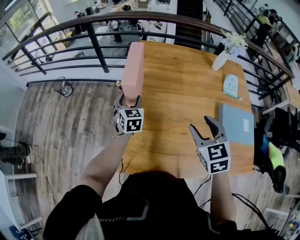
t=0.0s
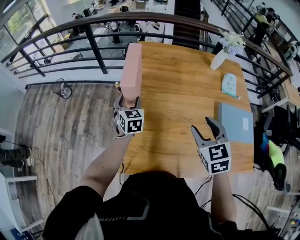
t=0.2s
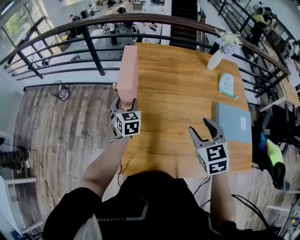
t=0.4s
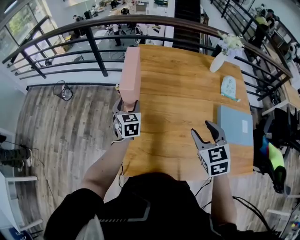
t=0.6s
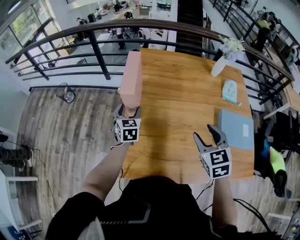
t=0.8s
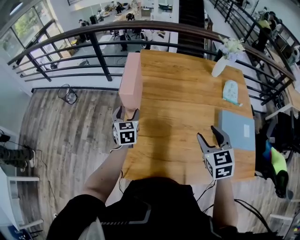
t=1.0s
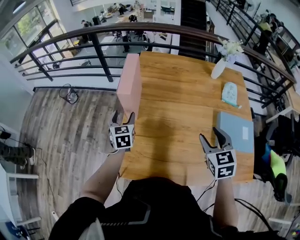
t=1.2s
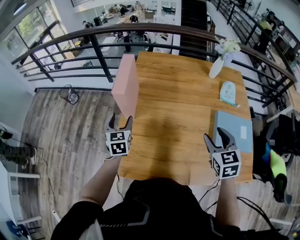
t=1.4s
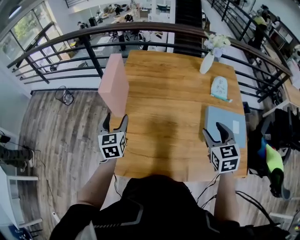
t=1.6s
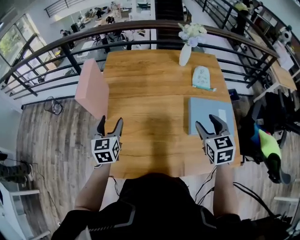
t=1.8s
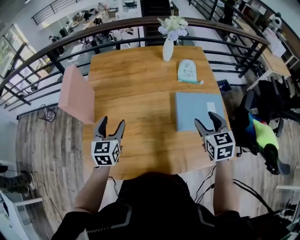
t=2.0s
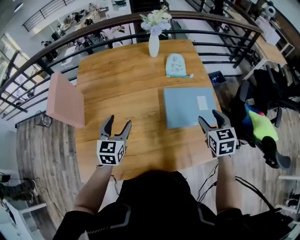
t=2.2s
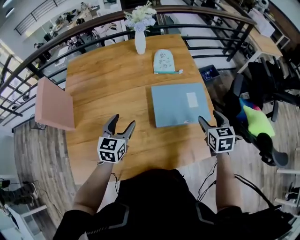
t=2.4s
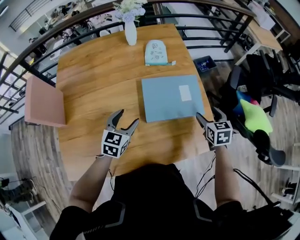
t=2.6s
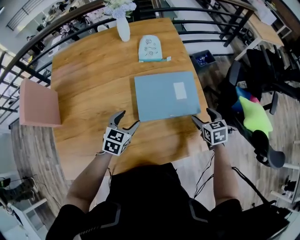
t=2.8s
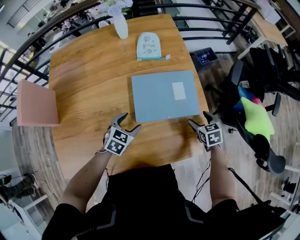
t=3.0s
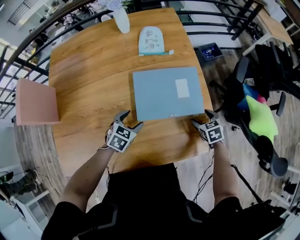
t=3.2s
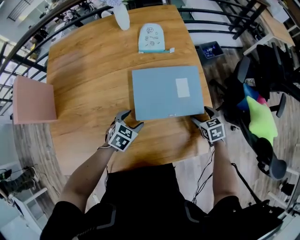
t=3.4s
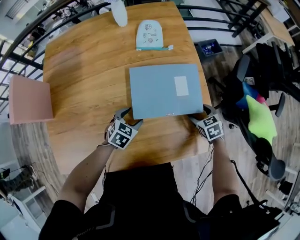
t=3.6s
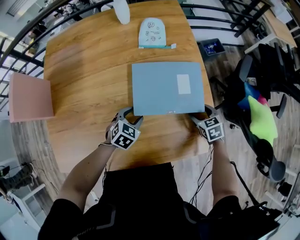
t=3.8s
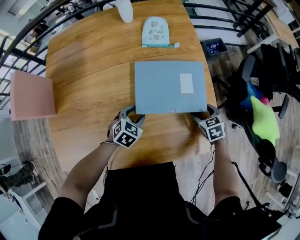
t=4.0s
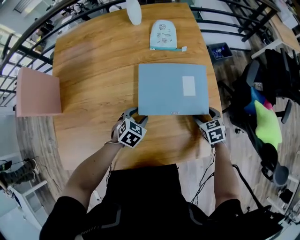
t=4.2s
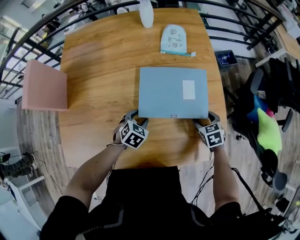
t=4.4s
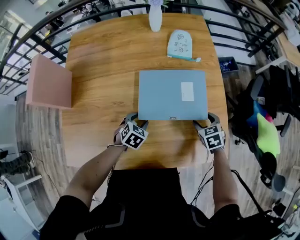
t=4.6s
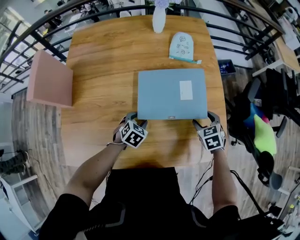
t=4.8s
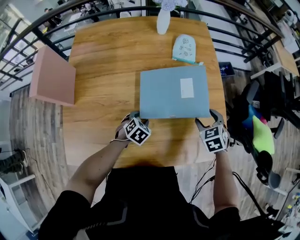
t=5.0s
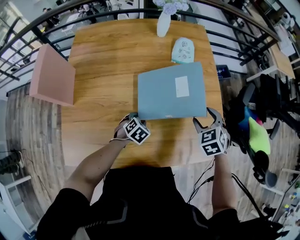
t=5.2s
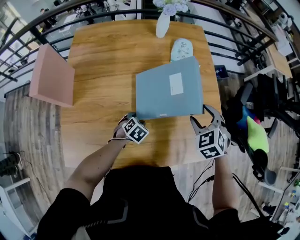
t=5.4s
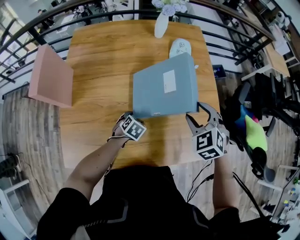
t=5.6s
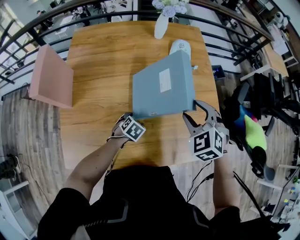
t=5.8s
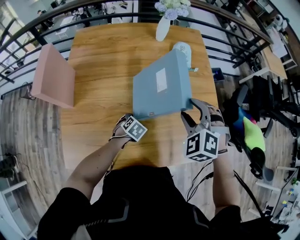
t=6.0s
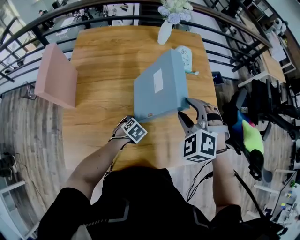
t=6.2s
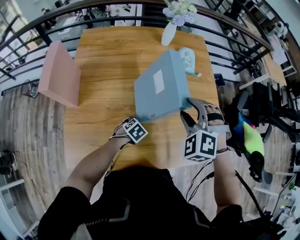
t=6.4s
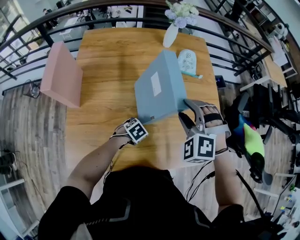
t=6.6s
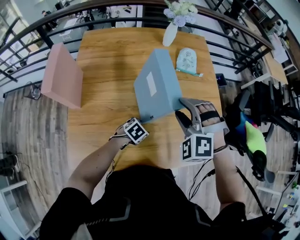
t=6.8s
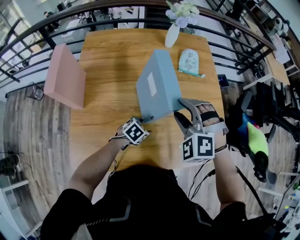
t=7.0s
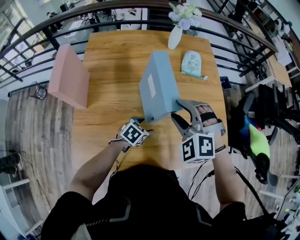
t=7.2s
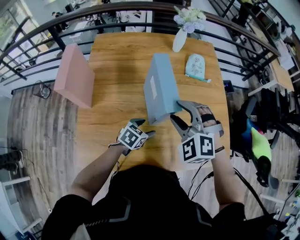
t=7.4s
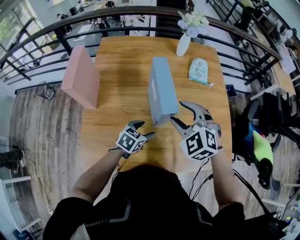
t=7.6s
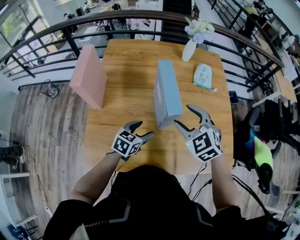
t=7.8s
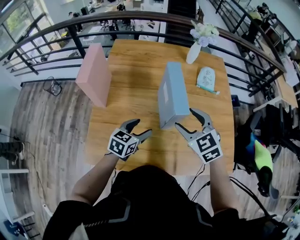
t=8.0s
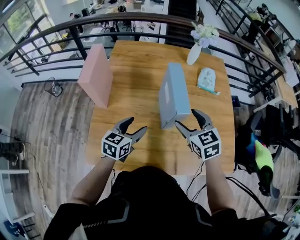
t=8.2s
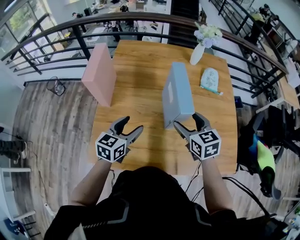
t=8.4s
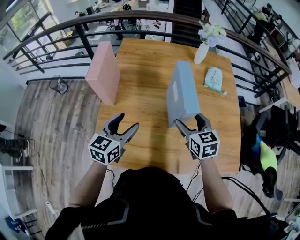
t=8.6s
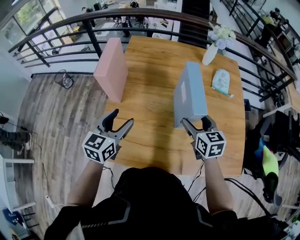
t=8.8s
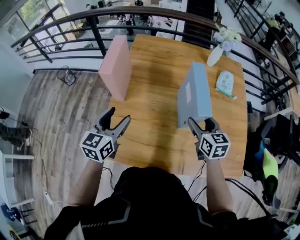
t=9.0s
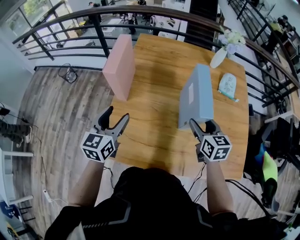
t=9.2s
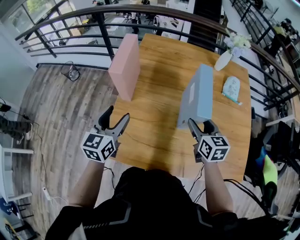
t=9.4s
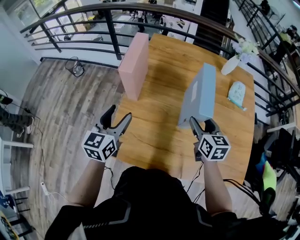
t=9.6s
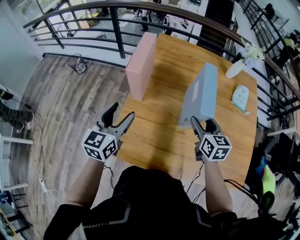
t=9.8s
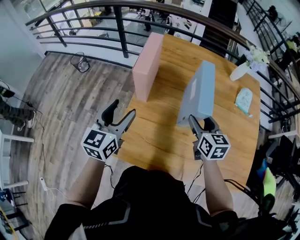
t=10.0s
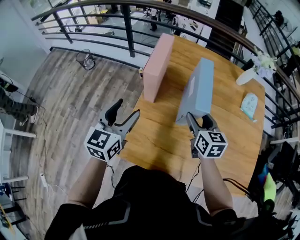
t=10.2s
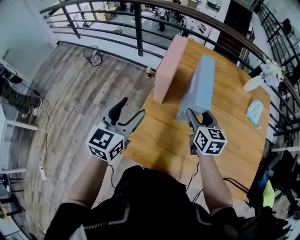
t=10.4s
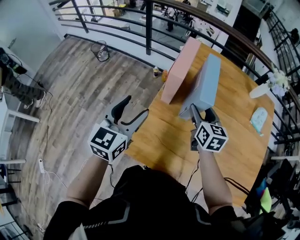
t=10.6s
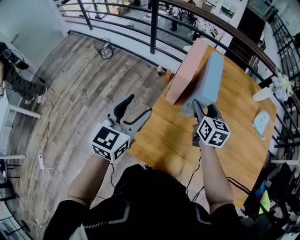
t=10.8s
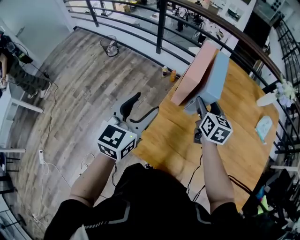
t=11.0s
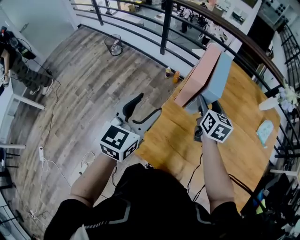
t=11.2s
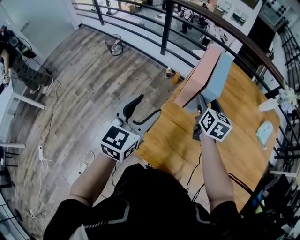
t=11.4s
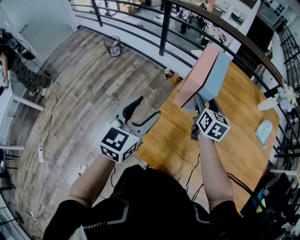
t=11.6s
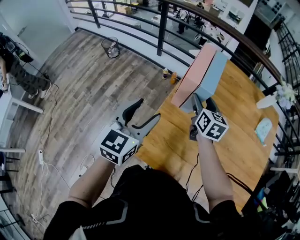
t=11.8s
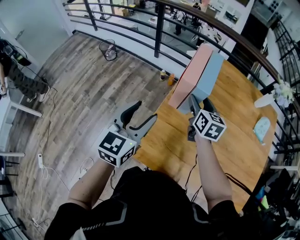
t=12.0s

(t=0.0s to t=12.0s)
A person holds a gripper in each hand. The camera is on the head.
t=0.0s - t=1.6s: The left gripper goes some 15 cm backward and upward. Meanwhile the right gripper travels to the right by approximately 15 cm.
t=1.6s - t=3.0s: The left gripper ends up roughly 50 cm from where it was, and turns by roughly 60 degrees. Meanwhile the right gripper changes place by about 40 cm, and swivels some 30 degrees.
t=3.0s - t=4.4s: The left gripper is displaced downward by approximately 5 cm; the right gripper moves to the left, about 5 cm.
t=4.4s - t=6.0s: The right gripper shifts about 30 cm upward and to the left, and twists some 50 degrees counterclockwise, seen from behind; the left gripper heads to the left, covering approximately 5 cm.
t=6.0s - t=7.6s: The right gripper changes place by about 15 cm, and changes its angle by about 20 degrees; the left gripper moves upward, roughly 10 cm, and rotates some 30 degrees.
t=7.6s - t=9.0s: The left gripper is displaced to the left and upward by roughly 30 cm, and rotates roughly 40 degrees, while the right gripper moves downward, approximately 5 cm, and rotates around the line of its fingers by about 50 degrees, clockwise from behind.
t=9.0s - t=10.4s: The right gripper shifts about 25 cm to the left and forward; the left gripper is displaced to the left by approximately 15 cm.
t=10.4s - t=12.0s: The right gripper travels to the left and forward by some 10 cm.

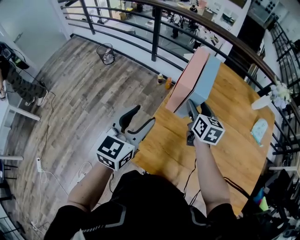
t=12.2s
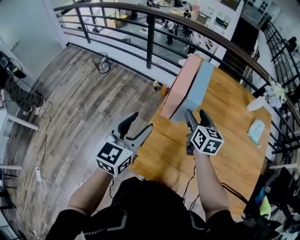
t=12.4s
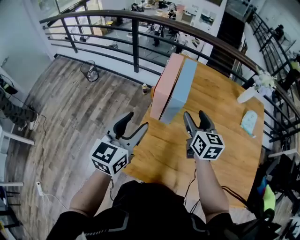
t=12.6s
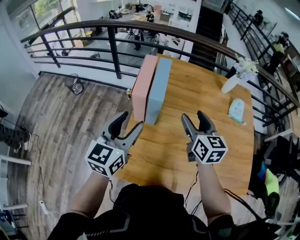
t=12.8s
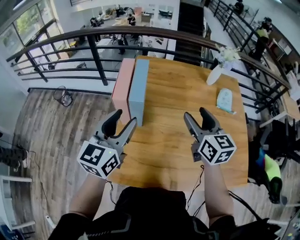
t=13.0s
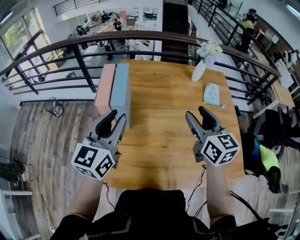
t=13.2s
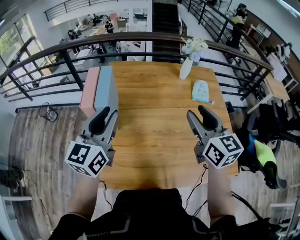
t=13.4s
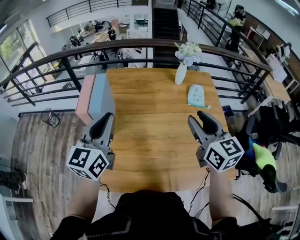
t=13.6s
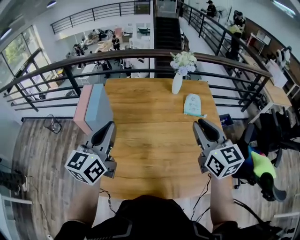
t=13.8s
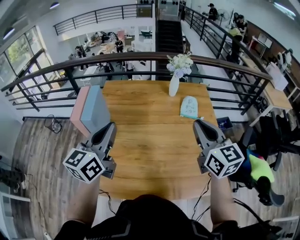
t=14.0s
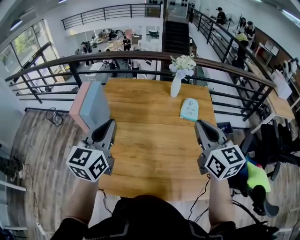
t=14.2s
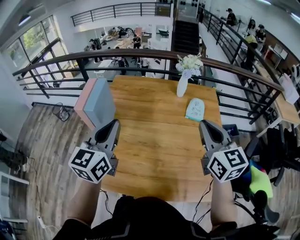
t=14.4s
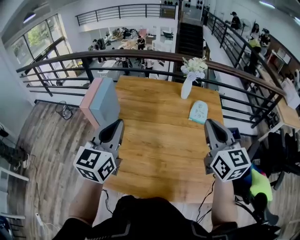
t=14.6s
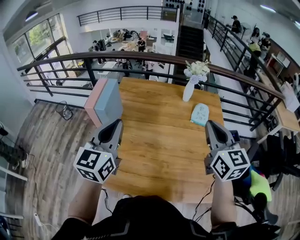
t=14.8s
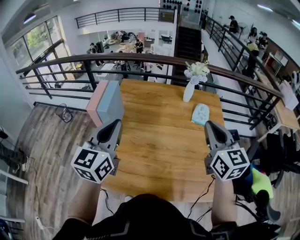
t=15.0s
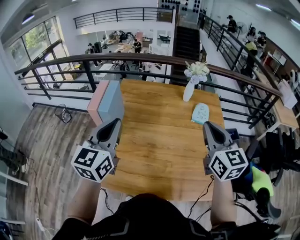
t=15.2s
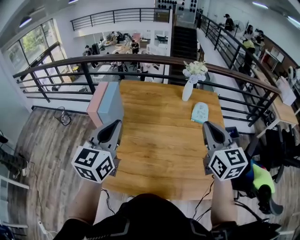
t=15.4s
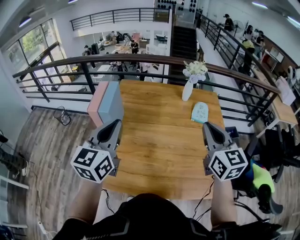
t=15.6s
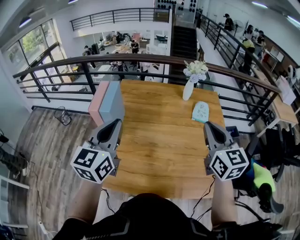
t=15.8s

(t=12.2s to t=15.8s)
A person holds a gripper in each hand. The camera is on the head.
t=12.2s - t=14.0s: The grippers both shift to the right and upward by some 40 cm. The left gripper turns by about 20 degrees, and closes. Meanwhile the right gripper changes its angle by about 20 degrees, and closes.
t=14.0s - t=15.8s: The left gripper changes place by roughly 5 cm.

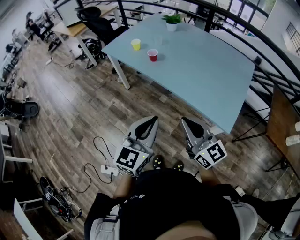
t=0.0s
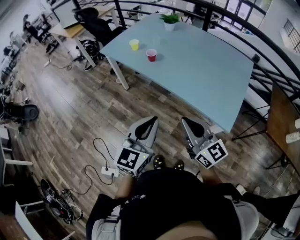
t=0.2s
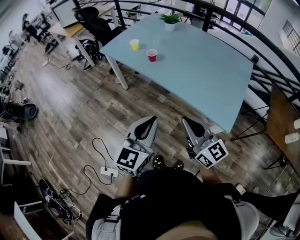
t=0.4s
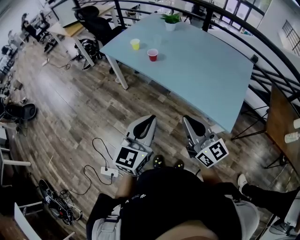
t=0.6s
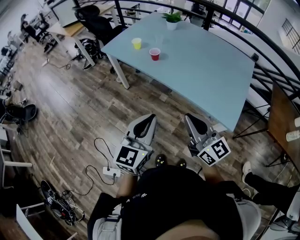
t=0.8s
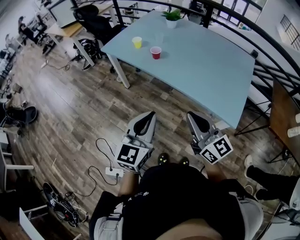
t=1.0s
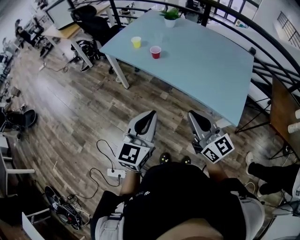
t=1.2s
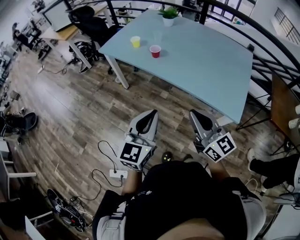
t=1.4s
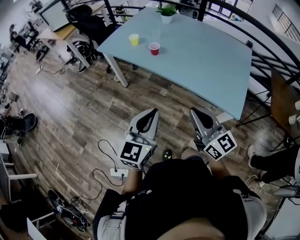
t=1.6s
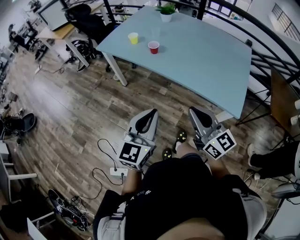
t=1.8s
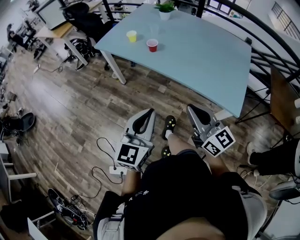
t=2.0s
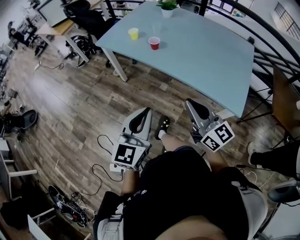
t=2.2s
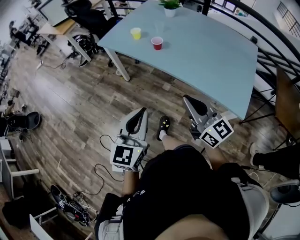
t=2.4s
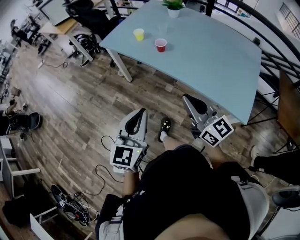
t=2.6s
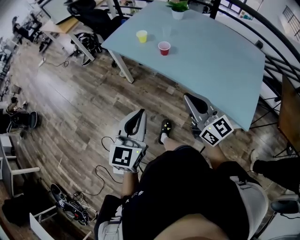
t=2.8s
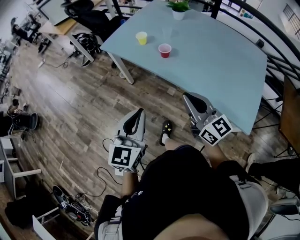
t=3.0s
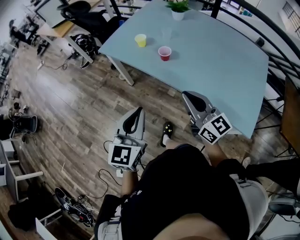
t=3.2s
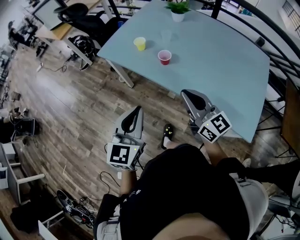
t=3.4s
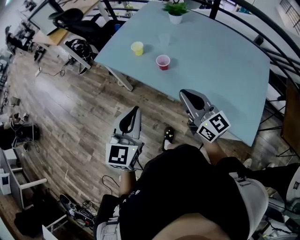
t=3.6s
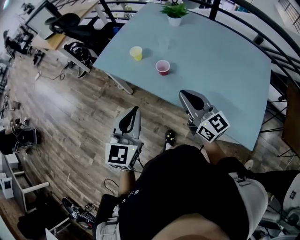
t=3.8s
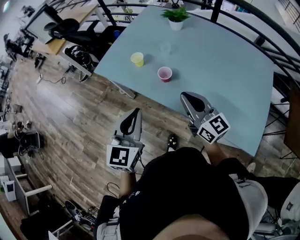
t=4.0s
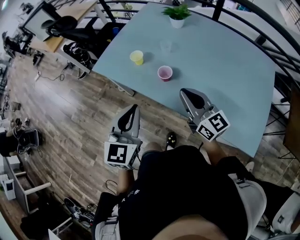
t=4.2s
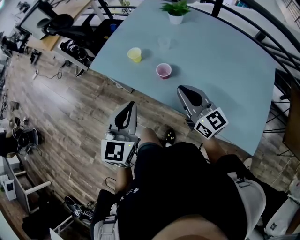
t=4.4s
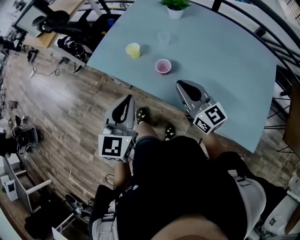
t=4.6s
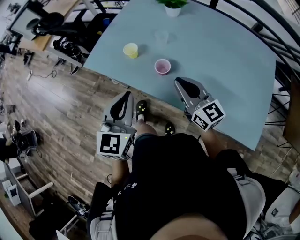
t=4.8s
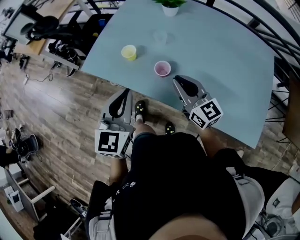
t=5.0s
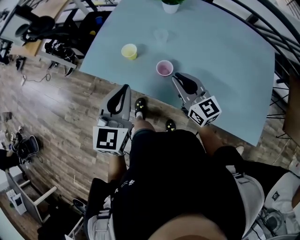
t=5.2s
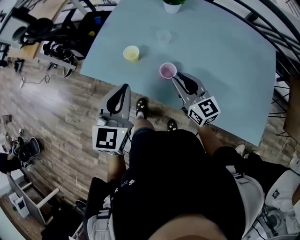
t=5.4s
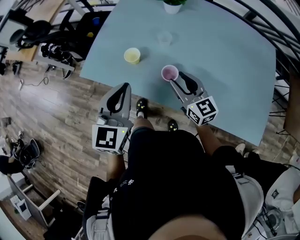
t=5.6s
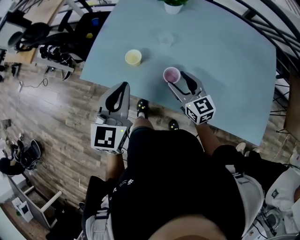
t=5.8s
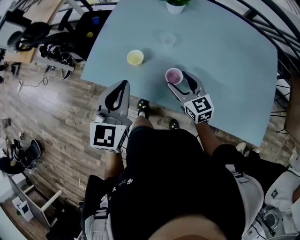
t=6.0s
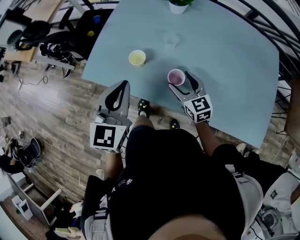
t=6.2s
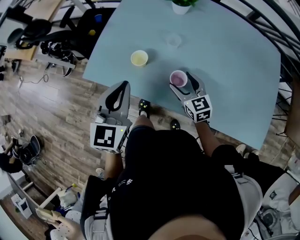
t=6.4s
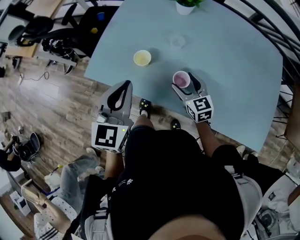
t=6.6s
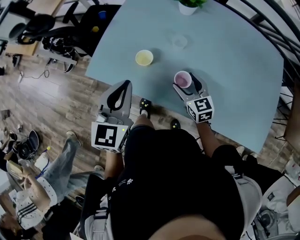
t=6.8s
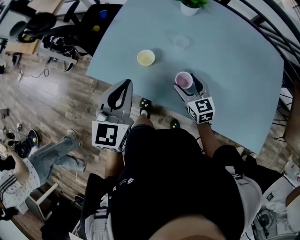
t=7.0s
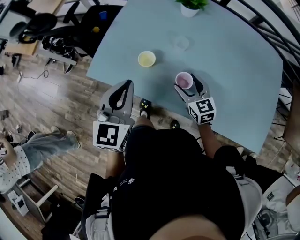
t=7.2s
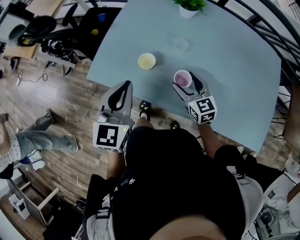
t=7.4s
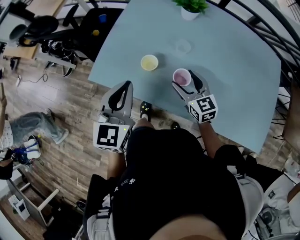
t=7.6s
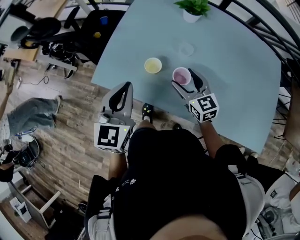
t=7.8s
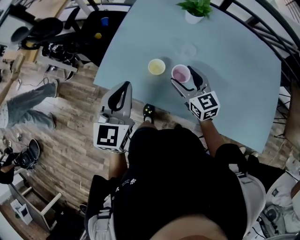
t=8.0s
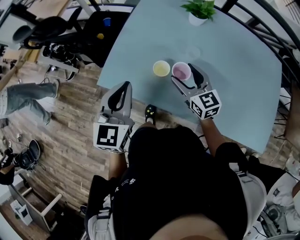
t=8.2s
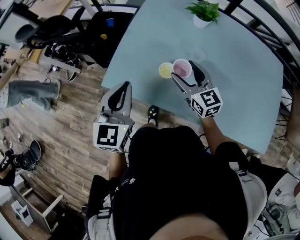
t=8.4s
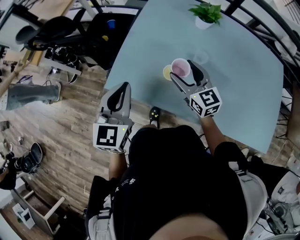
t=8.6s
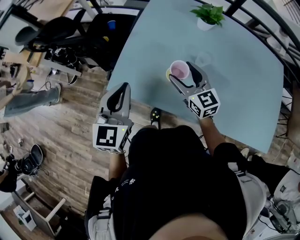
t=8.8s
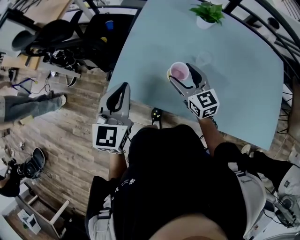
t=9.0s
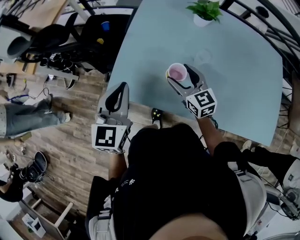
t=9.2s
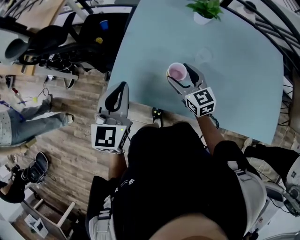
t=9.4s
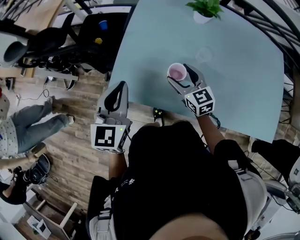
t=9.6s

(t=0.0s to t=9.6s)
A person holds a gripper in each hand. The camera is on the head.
t=0.0s - t=1.6s: The left gripper is displaced to the left by roughly 10 cm. Meanwhile the right gripper moves to the left, roughly 5 cm.
t=1.6s - t=3.2s: The right gripper travels forward by approximately 20 cm. The left gripper moves forward and to the left, approximately 20 cm.
t=3.2s - t=4.8s: The two grippers go roughly 25 cm forward.
t=4.8s - t=6.4s: The right gripper goes roughly 15 cm downward and forward, rotates about 30 degrees, and opens, while the left gripper is displaced forward and to the left by roughly 15 cm.
t=6.4s - t=8.0s: The left gripper heads to the left and forward, covering approximately 10 cm, while the right gripper shifts about 15 cm to the left, upward and forward.
t=8.0s - t=9.6s: The two grippers go roughly 10 cm to the left and forward.
